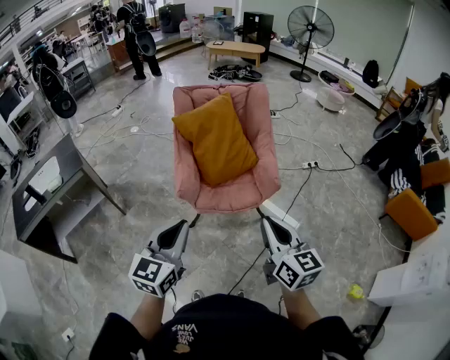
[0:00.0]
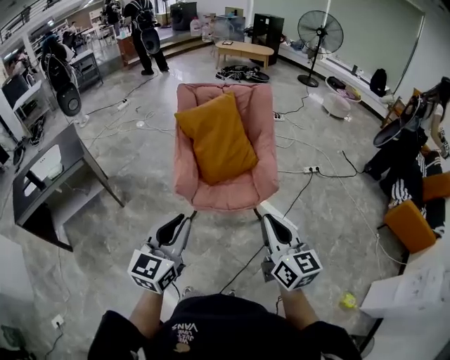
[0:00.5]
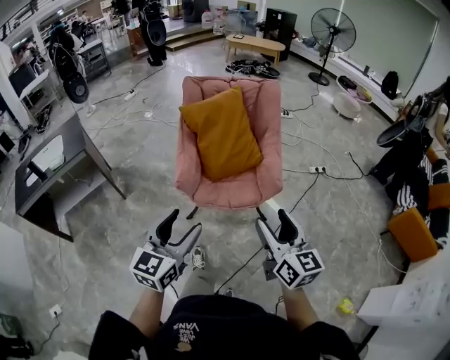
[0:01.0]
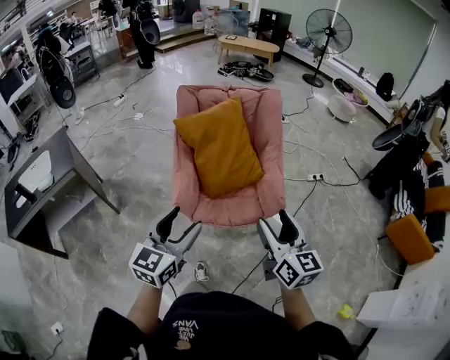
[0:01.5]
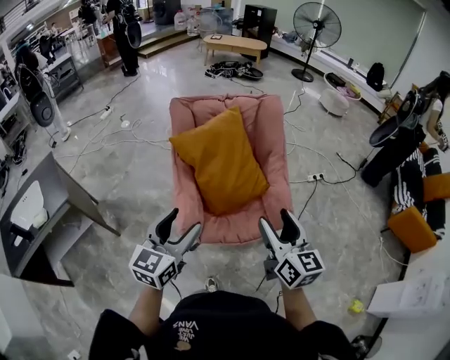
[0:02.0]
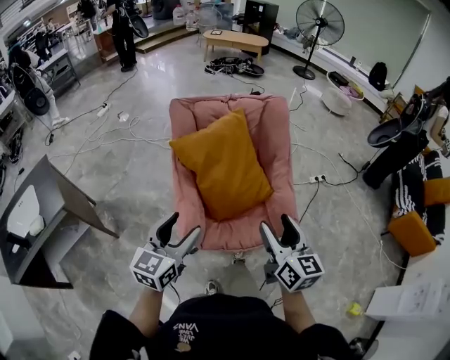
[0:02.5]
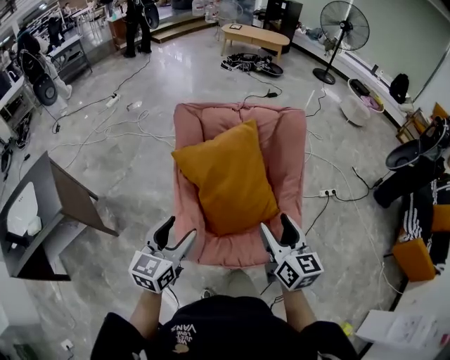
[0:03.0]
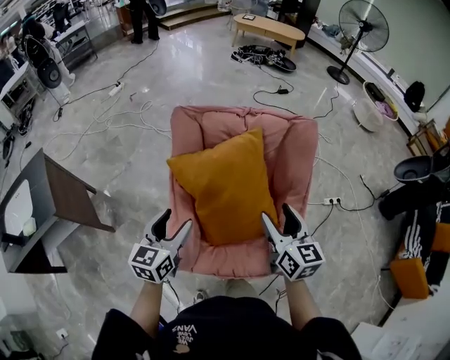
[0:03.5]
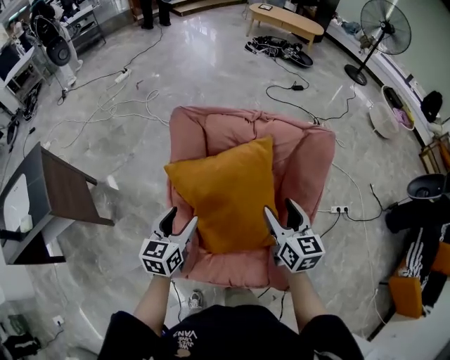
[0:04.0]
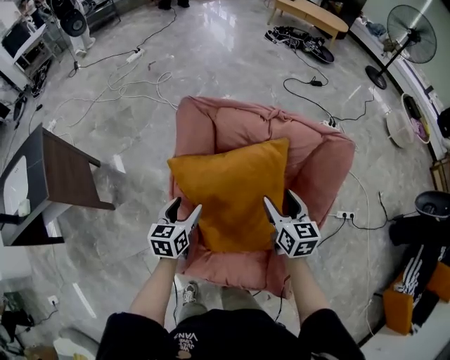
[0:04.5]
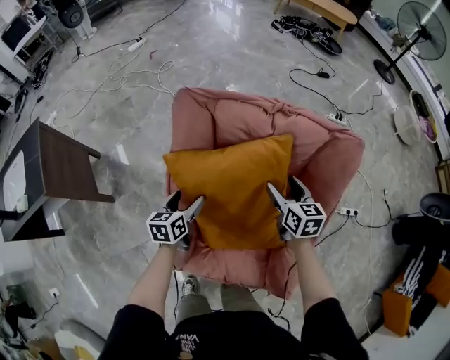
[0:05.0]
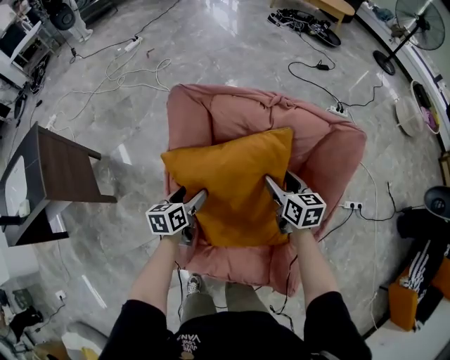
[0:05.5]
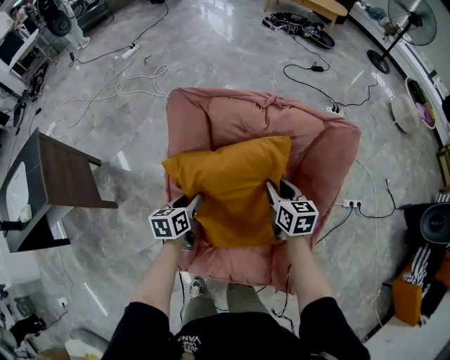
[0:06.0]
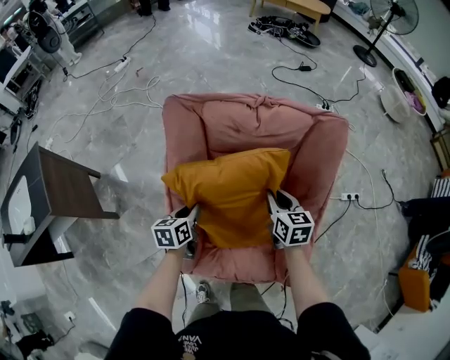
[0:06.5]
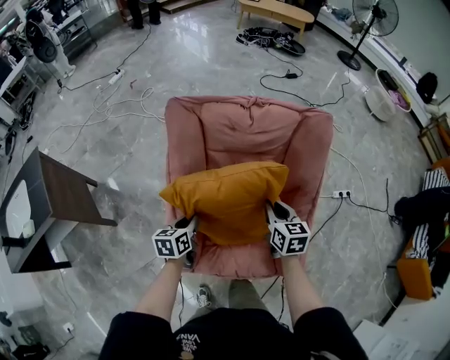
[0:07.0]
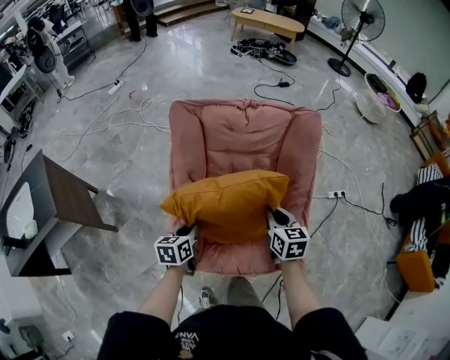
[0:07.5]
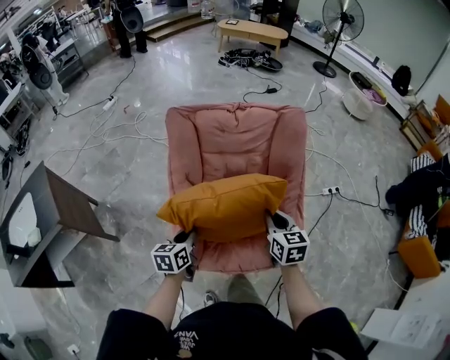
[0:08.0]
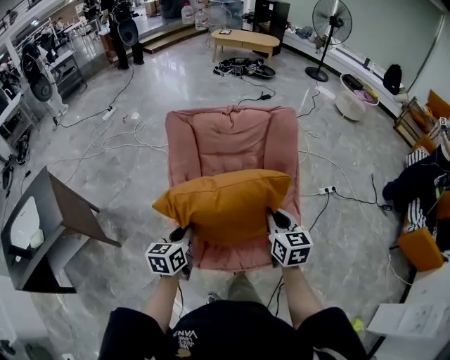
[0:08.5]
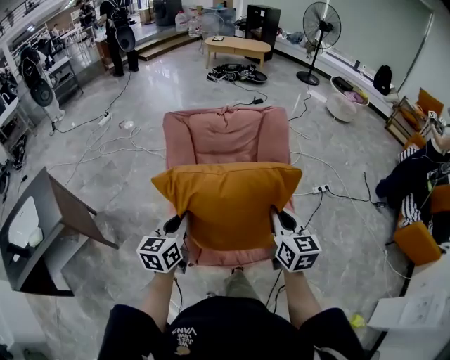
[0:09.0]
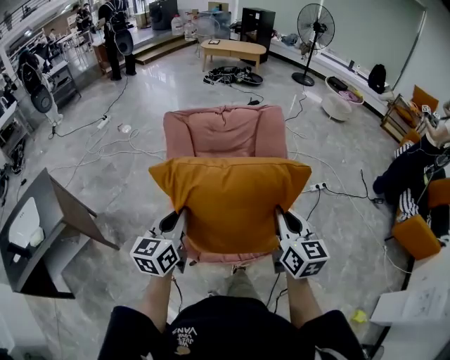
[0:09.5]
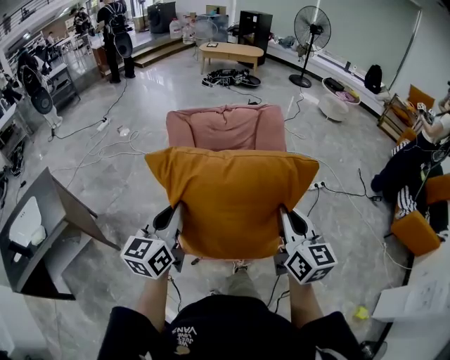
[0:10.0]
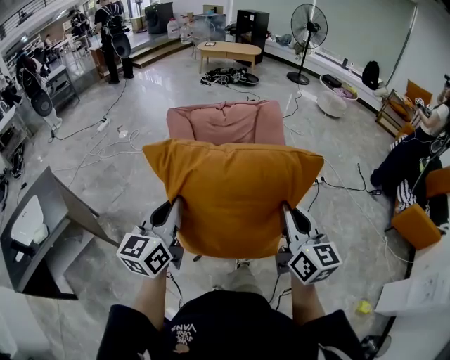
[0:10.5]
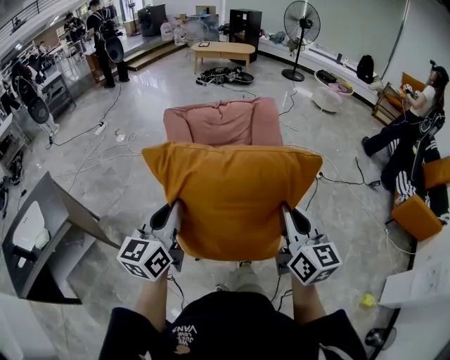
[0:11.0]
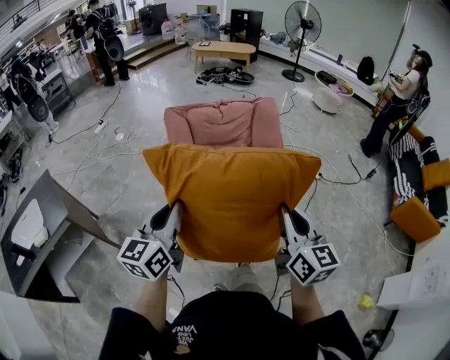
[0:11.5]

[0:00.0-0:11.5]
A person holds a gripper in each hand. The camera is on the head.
0:00.0 to 0:02.0: The two grippers go about 25 cm forward. The left gripper opens up; the right gripper opens.
0:02.0 to 0:04.0: The right gripper is displaced forward by roughly 40 cm, and swivels about 20 degrees. The left gripper shifts roughly 40 cm forward and downward, and rotates some 30 degrees.
0:04.0 to 0:06.0: The grippers both shift downward and forward by approximately 15 cm. The right gripper closes. Meanwhile the left gripper changes its angle by about 30 degrees.
0:06.0 to 0:07.5: The grippers both shift backward by about 20 cm.
0:07.5 to 0:09.5: The left gripper is displaced upward and backward by about 25 cm, and rotates roughly 30 degrees, while the right gripper goes about 30 cm backward and upward, and changes its angle by some 30 degrees.
0:09.5 to 0:11.5: Both grippers travel together backward and upward, some 10 cm.

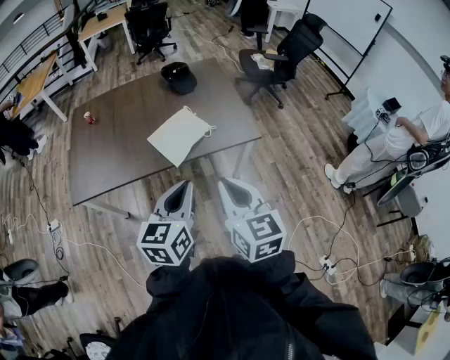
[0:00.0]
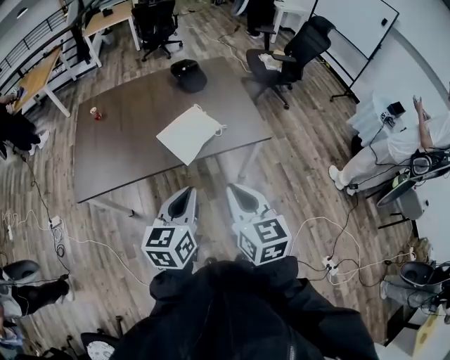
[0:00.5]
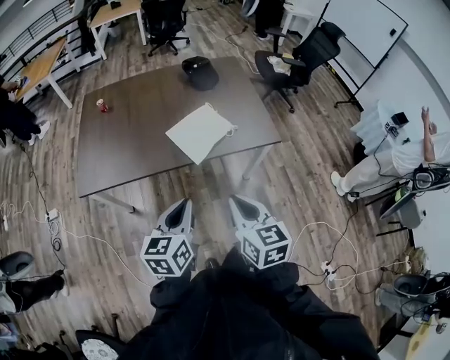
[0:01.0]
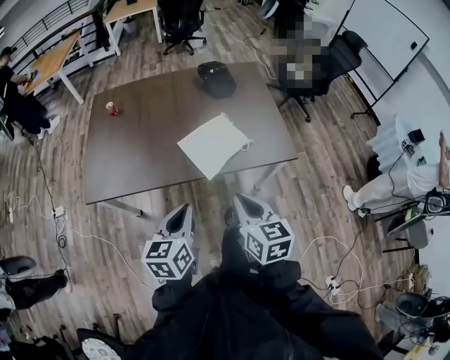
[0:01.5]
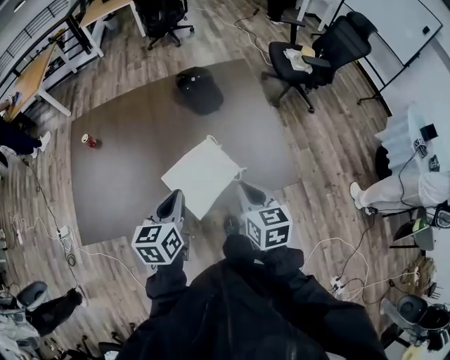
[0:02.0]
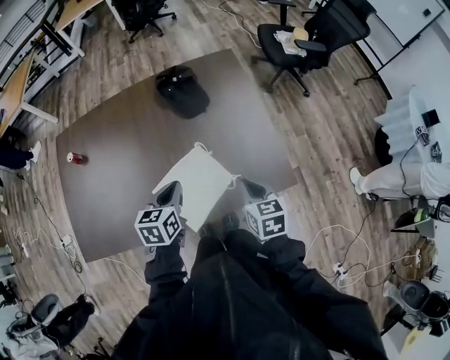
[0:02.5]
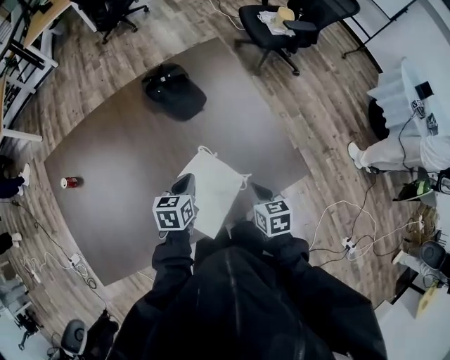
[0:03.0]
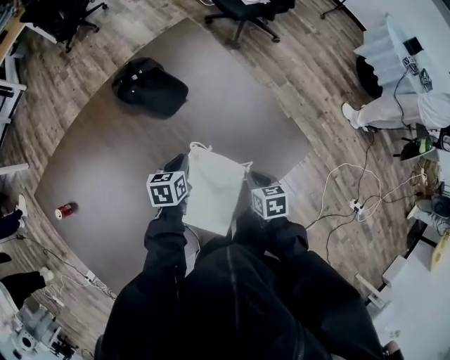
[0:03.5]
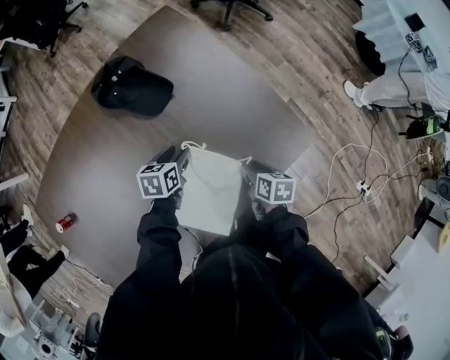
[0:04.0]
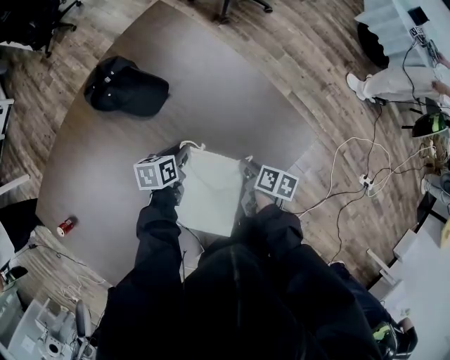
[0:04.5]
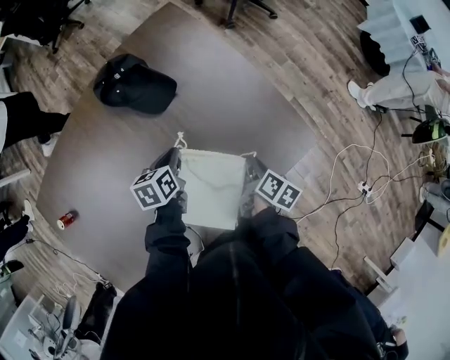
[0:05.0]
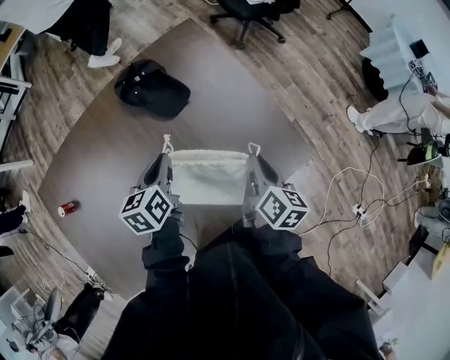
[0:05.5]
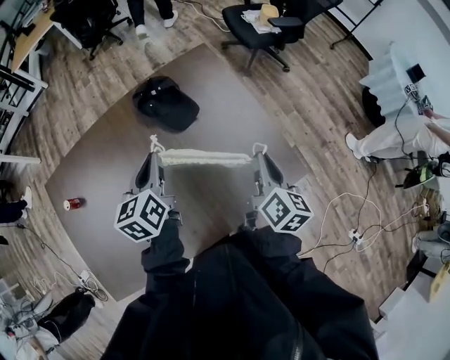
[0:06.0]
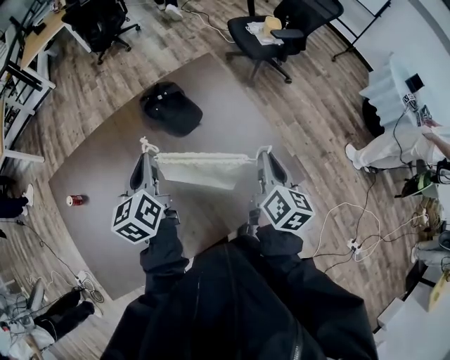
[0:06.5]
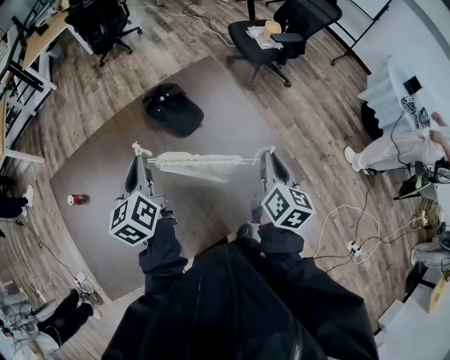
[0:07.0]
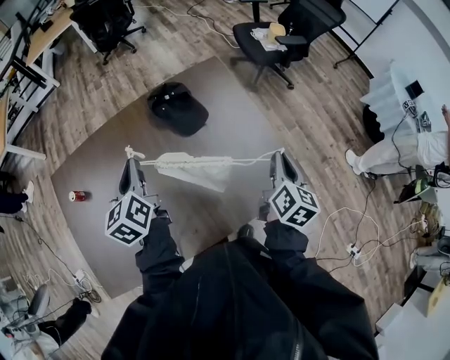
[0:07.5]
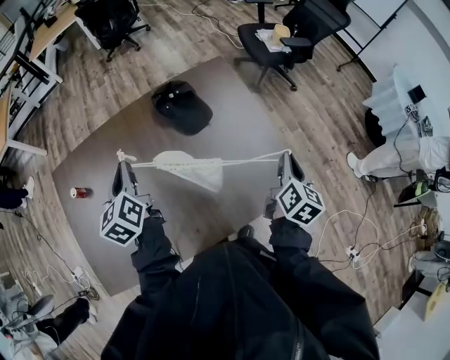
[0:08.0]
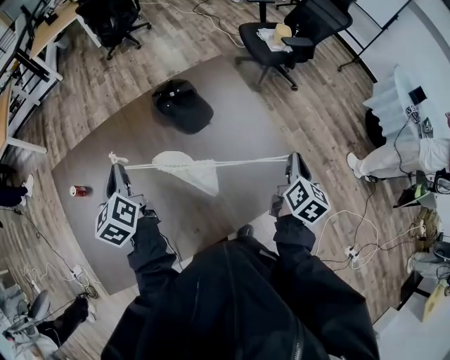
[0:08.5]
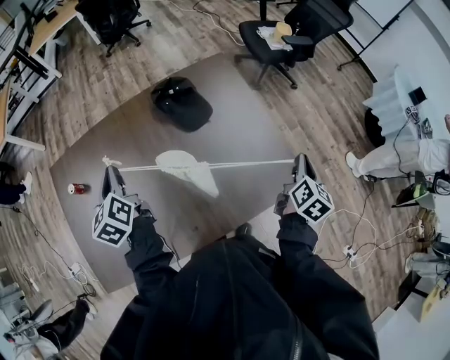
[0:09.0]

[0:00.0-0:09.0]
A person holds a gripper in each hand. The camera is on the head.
0:00.0 to 0:02.0: The right gripper travels forward and downward by about 40 cm. Meanwhile the left gripper shifts some 35 cm forward.
0:02.0 to 0:04.5: Both grippers move downward, about 35 cm. The right gripper rolls clockwise, seen from behind, by about 70 degrees, and opens up. The left gripper rotates roughly 50 degrees, and opens and closes again.
0:04.5 to 0:07.0: The left gripper goes about 40 cm upward and to the left, and points its fingers approximately 30 degrees further upward. The right gripper heads upward, covering roughly 35 cm, and points its fingers about 30 degrees further upward.
0:07.0 to 0:09.0: The left gripper goes roughly 15 cm to the left; the right gripper moves to the right, about 10 cm.

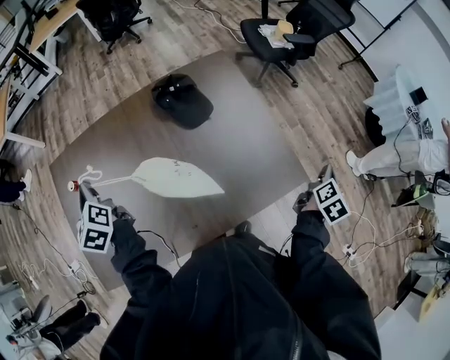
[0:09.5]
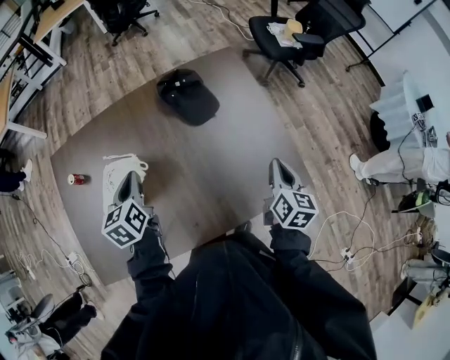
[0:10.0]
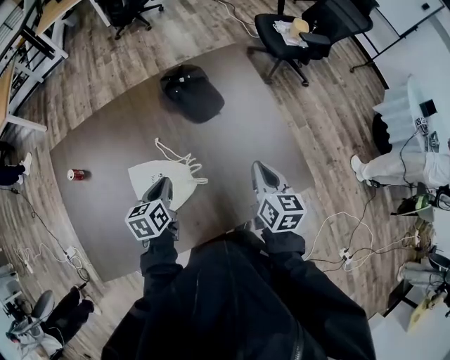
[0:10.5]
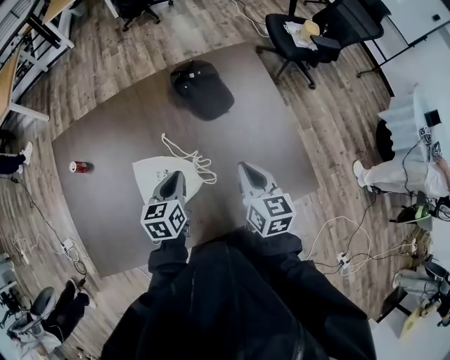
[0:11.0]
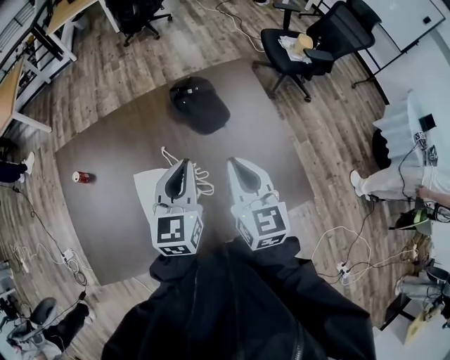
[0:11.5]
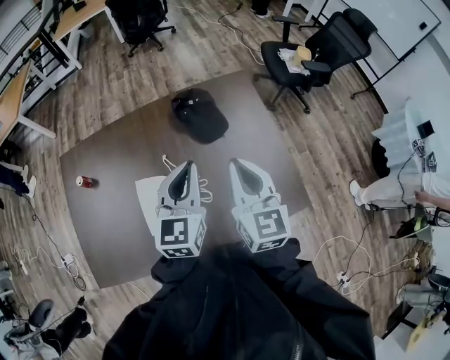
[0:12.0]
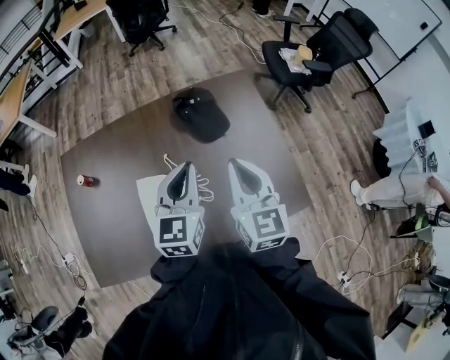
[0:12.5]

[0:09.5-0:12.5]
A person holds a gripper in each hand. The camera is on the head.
0:09.5 to 0:11.0: The left gripper moves to the right and downward, some 25 cm, and rotates about 50 degrees; the right gripper shifts about 35 cm to the left, and swivels some 60 degrees.
0:11.0 to 0:12.5: Both grippers move upward, roughly 15 cm. The right gripper turns by about 20 degrees; the left gripper changes its angle by about 30 degrees.

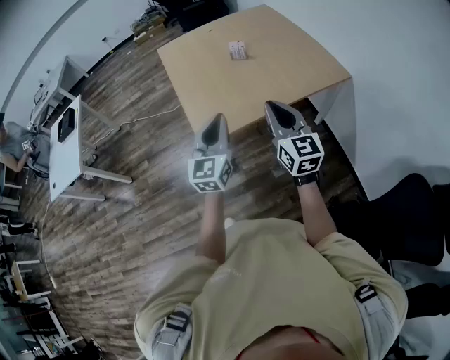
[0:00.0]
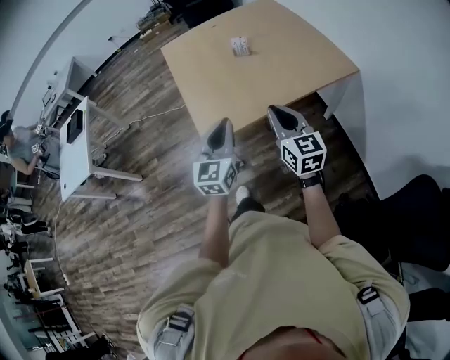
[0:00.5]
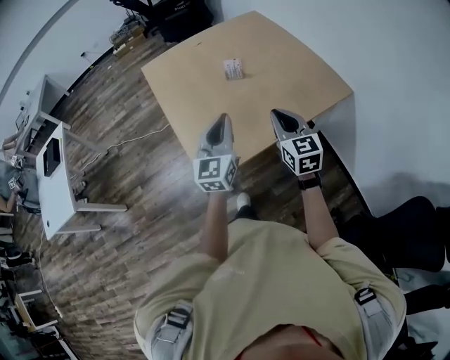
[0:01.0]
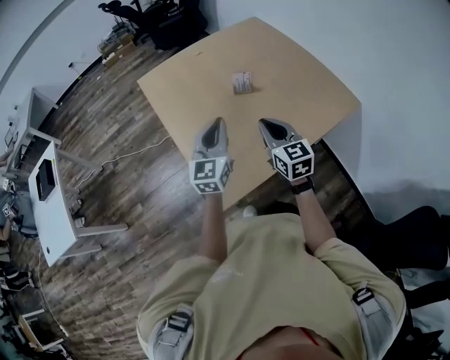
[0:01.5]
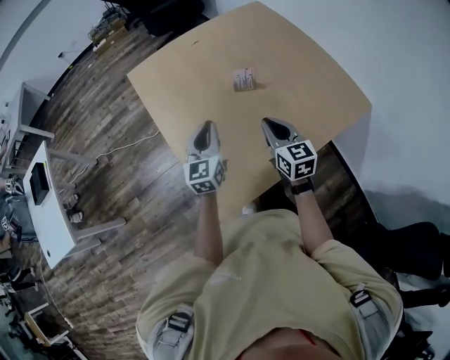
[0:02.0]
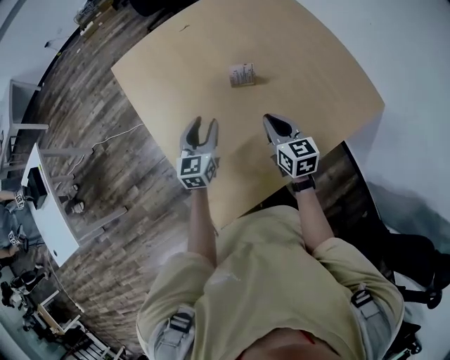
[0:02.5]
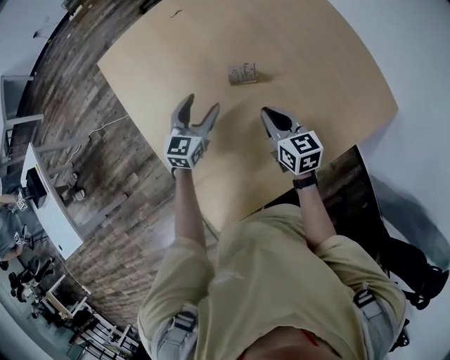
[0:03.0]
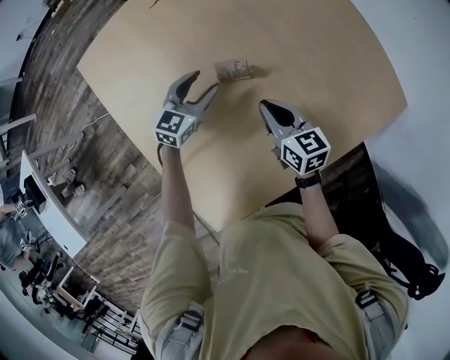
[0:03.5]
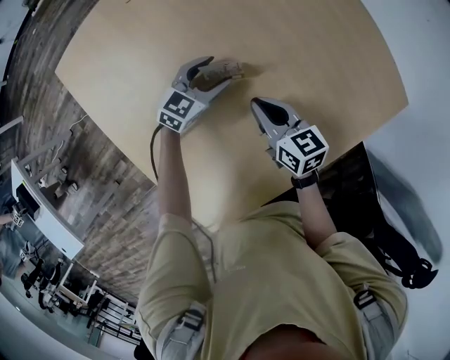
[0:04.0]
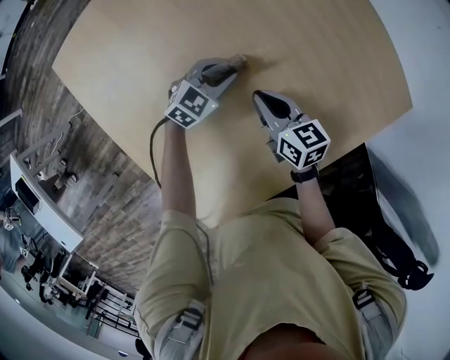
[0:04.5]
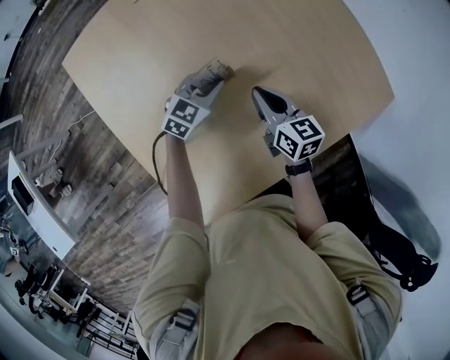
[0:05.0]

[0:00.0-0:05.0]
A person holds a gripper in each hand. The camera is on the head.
0:00.0 to 0:02.5: The pair of grippers is taken forward, some 50 cm. The two grippers go approximately 25 cm downward. The right gripper swivels approximately 30 degrees; the left gripper swivels roughly 20 degrees, and opens.
0:02.5 to 0:05.0: The right gripper goes some 15 cm forward and downward. The left gripper is displaced forward, downward and to the right by about 25 cm, swivels roughly 40 degrees, and opens, then closes again.
